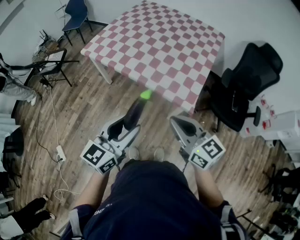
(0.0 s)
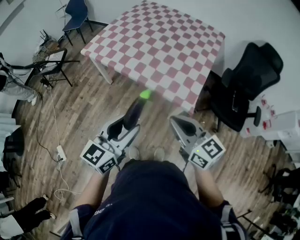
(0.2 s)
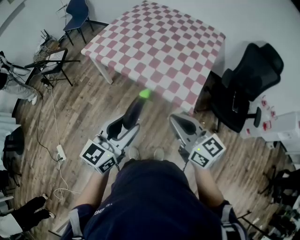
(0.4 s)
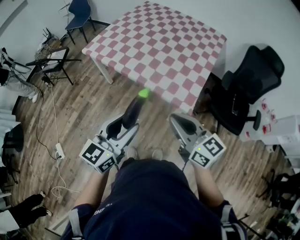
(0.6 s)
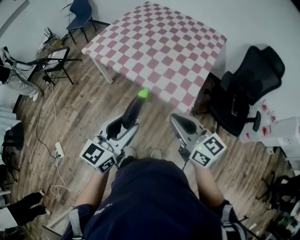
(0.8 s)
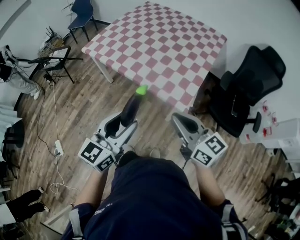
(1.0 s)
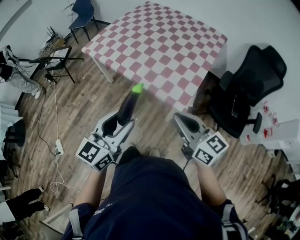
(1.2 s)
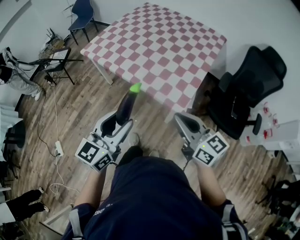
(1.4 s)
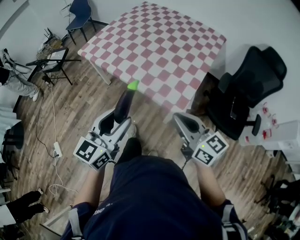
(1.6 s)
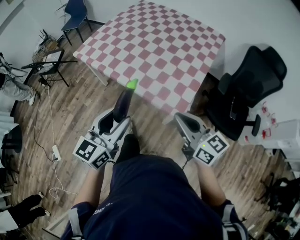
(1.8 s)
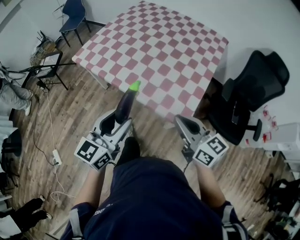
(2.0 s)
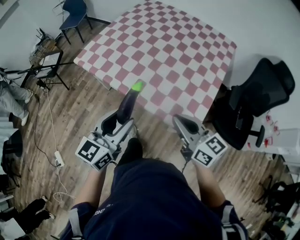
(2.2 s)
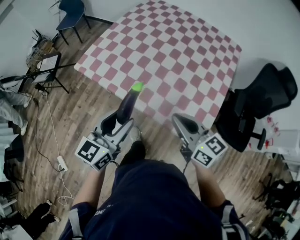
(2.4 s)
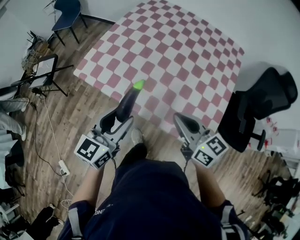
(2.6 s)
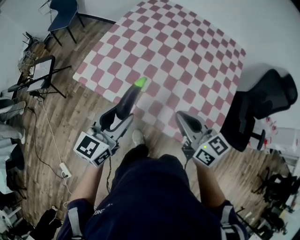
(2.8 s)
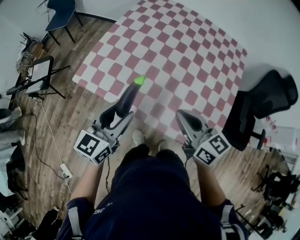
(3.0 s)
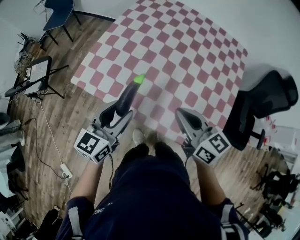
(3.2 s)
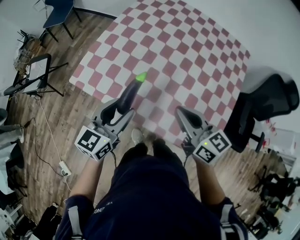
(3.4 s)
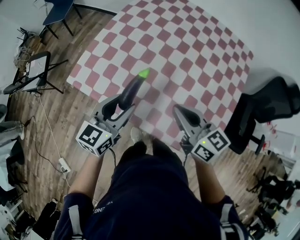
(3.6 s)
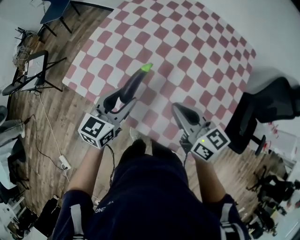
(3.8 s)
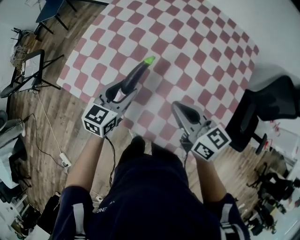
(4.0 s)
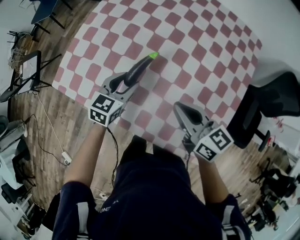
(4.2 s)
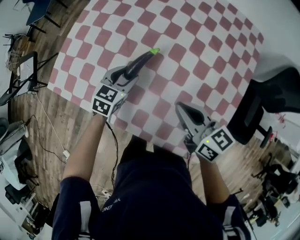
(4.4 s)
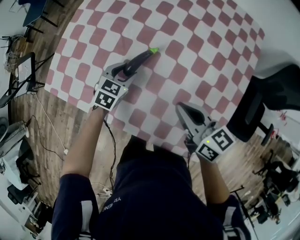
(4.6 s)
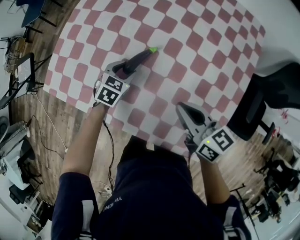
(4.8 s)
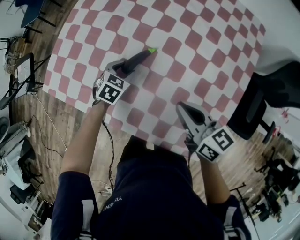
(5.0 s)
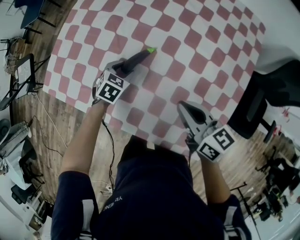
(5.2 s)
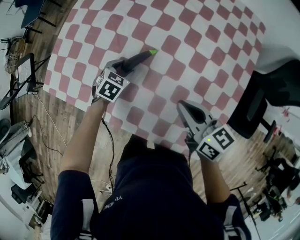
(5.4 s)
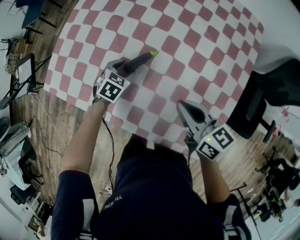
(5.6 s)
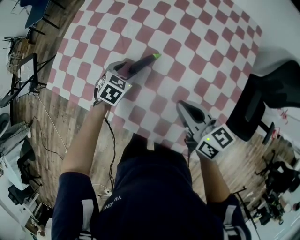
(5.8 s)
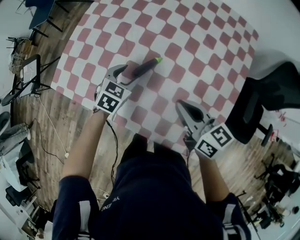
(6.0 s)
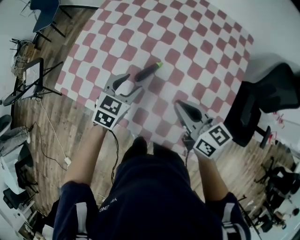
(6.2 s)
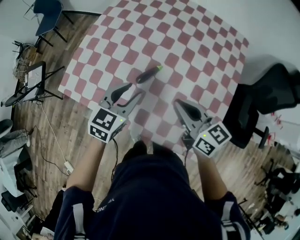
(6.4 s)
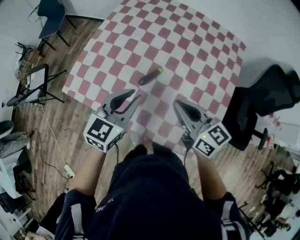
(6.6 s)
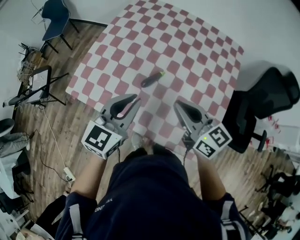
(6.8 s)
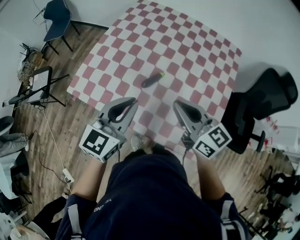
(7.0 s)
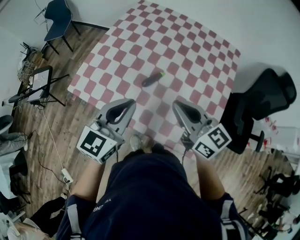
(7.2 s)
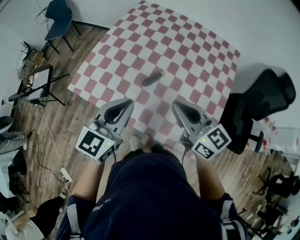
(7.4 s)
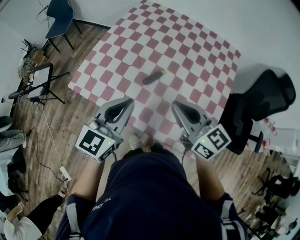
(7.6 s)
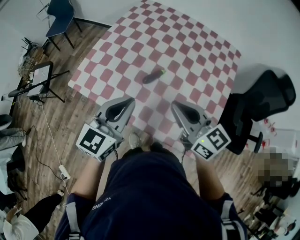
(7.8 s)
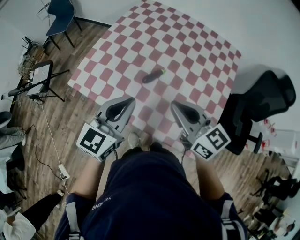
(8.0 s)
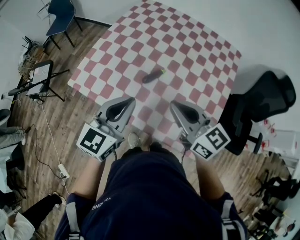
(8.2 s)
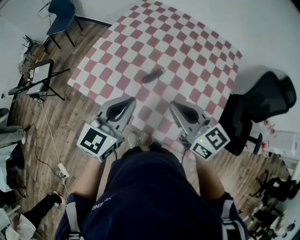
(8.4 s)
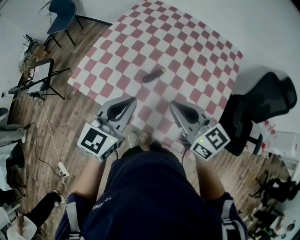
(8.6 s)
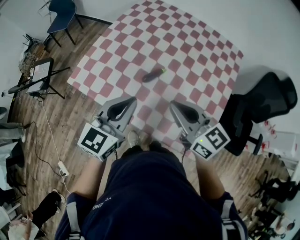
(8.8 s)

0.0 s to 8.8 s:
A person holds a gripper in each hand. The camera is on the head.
0.0 to 1.4 s: The left gripper heads to the right, covering some 5 cm, while the right gripper heads to the right, covering approximately 10 cm.
1.4 to 3.0 s: The pair of grippers is taken forward and to the left, about 40 cm.
3.0 to 4.4 s: The left gripper goes approximately 35 cm downward, forward and to the right, and turns by some 30 degrees, while the right gripper travels forward, to the right and downward by some 20 cm.
5.8 to 7.4 s: The left gripper moves upward and backward, roughly 40 cm, tips its fingers upward by roughly 50 degrees, and closes; the right gripper moves upward, to the left and backward, about 20 cm, and changes its angle by roughly 20 degrees.
7.4 to 8.8 s: The grippers stay close to where they were, moving slightly.

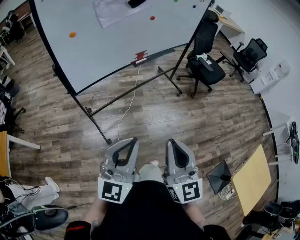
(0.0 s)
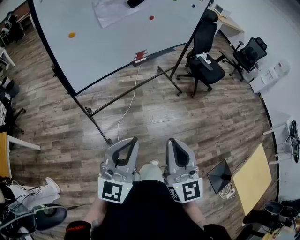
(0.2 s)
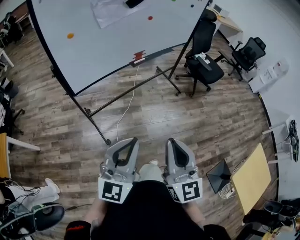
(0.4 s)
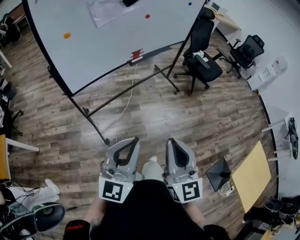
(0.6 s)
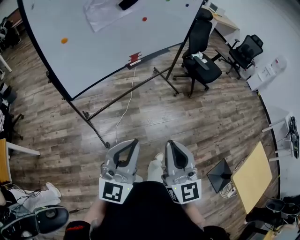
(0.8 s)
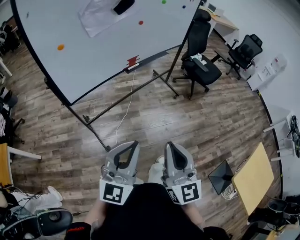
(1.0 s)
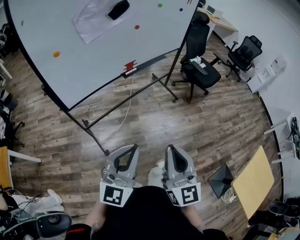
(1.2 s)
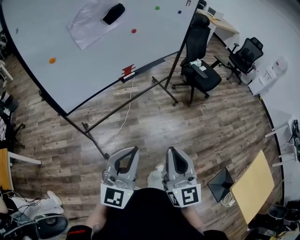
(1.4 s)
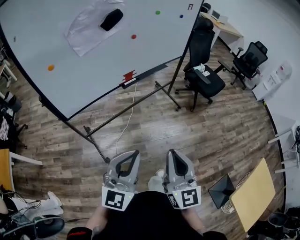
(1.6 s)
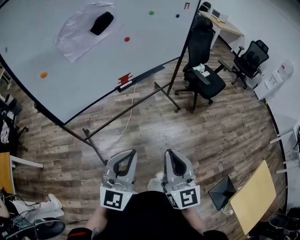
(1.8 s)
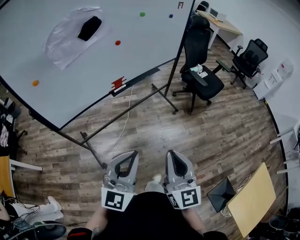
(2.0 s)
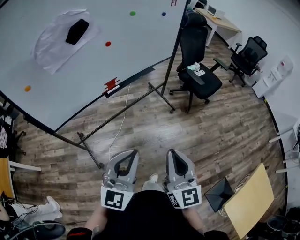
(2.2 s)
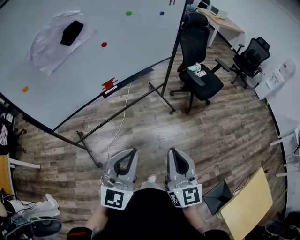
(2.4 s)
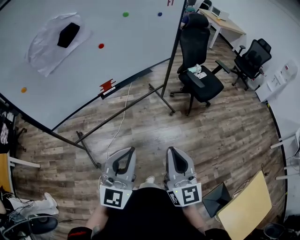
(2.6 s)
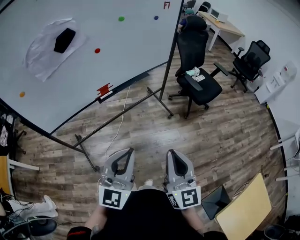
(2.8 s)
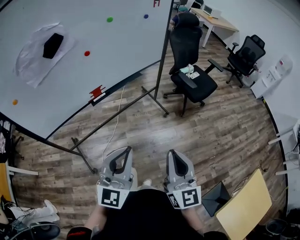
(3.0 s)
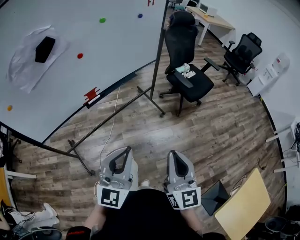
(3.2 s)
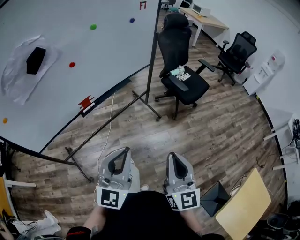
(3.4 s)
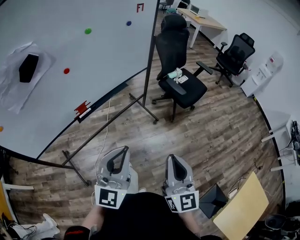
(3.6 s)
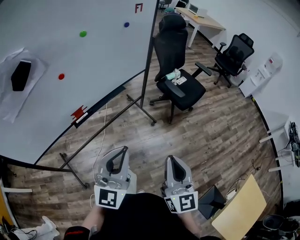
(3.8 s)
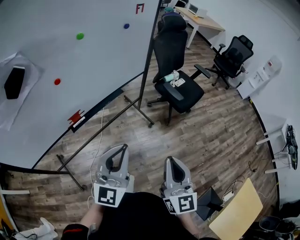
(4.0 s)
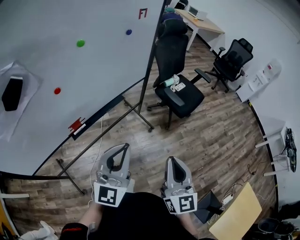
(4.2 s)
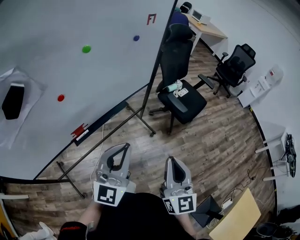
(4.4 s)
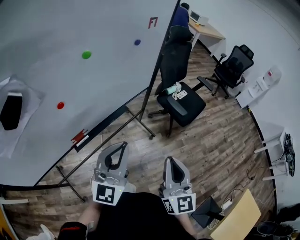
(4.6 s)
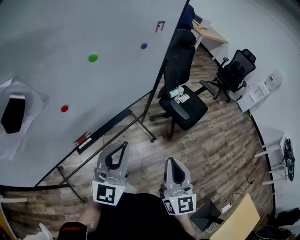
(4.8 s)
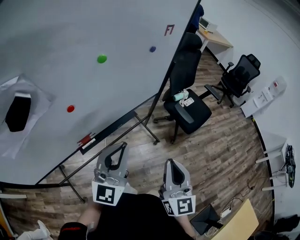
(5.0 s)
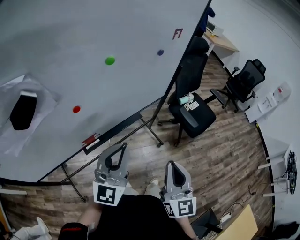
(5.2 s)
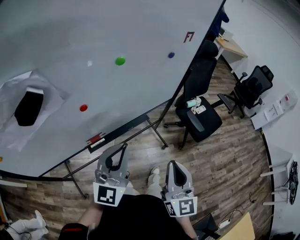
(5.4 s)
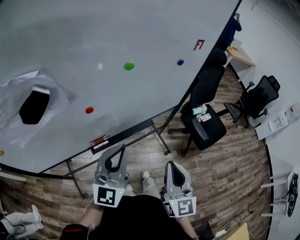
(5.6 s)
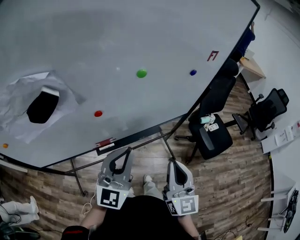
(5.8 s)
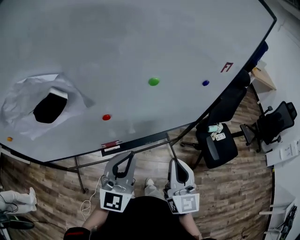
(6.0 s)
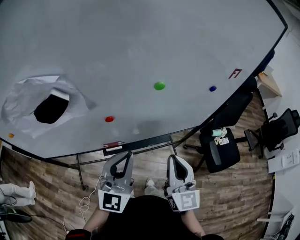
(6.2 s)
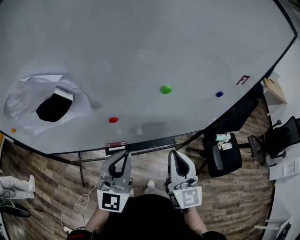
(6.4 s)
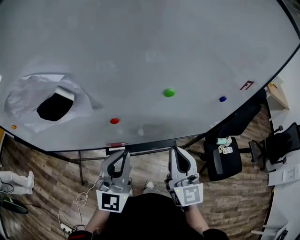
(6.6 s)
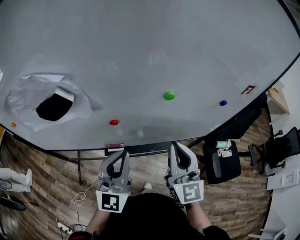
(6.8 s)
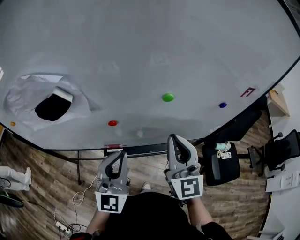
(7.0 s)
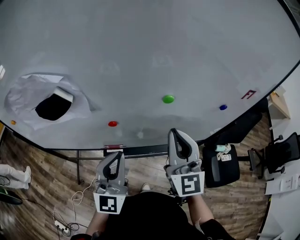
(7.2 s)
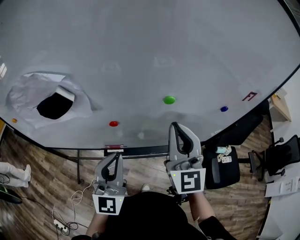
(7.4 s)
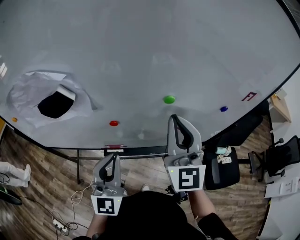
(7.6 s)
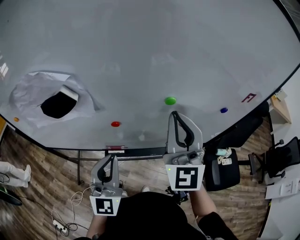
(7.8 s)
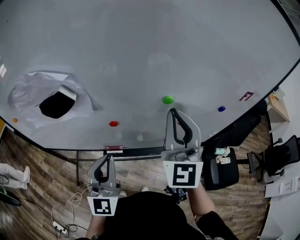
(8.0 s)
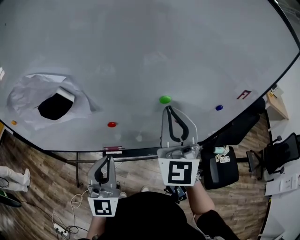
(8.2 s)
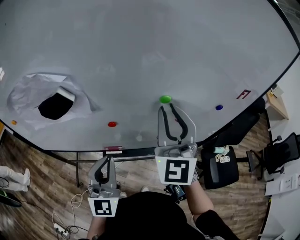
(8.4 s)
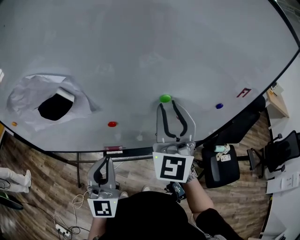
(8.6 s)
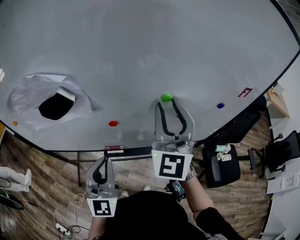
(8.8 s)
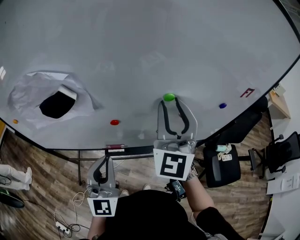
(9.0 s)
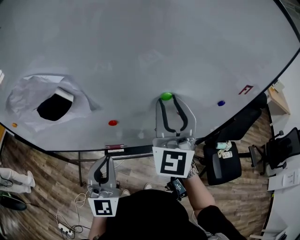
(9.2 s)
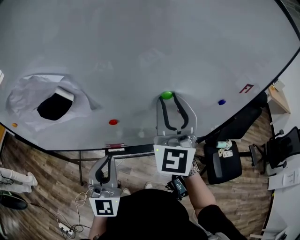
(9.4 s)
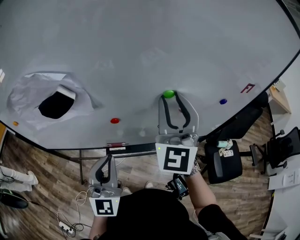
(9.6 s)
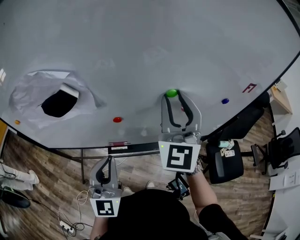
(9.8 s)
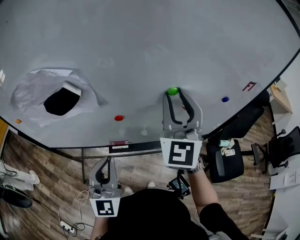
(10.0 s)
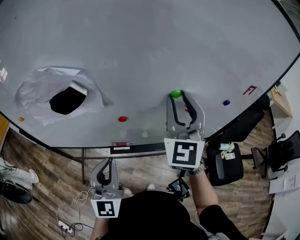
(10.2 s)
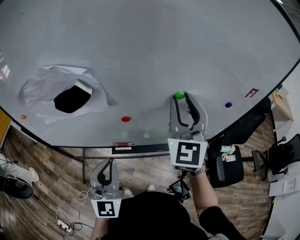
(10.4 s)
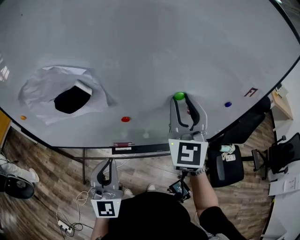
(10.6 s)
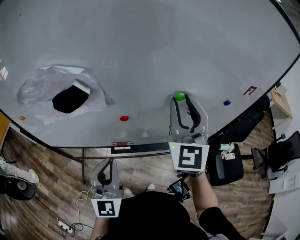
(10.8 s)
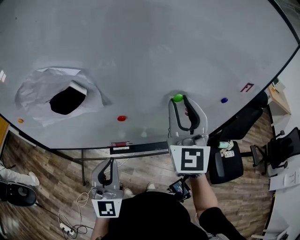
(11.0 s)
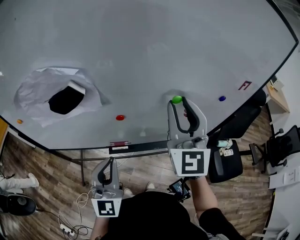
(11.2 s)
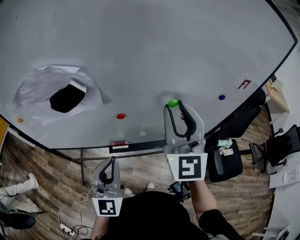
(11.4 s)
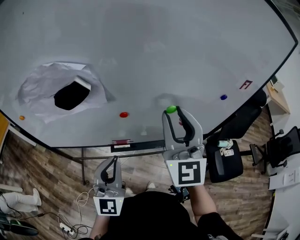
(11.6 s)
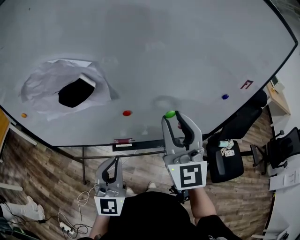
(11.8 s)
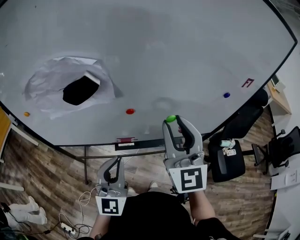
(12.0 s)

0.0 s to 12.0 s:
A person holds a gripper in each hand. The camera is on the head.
0.0 to 1.6 s: Both grippers travel together forward and to the right, approximately 15 cm.
1.6 to 3.0 s: Both grippers travel together to the right and forward, some 25 cm.
3.0 to 4.4 s: The two grippers go approximately 25 cm forward.
4.4 to 6.0 s: The right gripper ends up about 25 cm from where it was, and rotates roughly 30 degrees. The left gripper changes place by approximately 15 cm, and changes its angle by some 30 degrees.
6.0 to 7.6 s: The right gripper goes about 20 cm forward and upward, and swivels some 30 degrees; the left gripper heads to the left, covering some 5 cm, and turns by approximately 30 degrees.
7.6 to 9.0 s: The right gripper opens its fingers.
9.0 to 10.4 s: The grippers stay close to where they were, moving slightly.
10.4 to 12.0 s: The right gripper heads backward, covering roughly 10 cm.

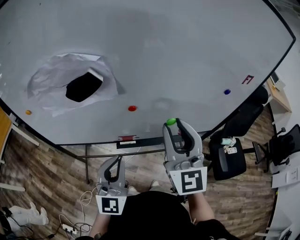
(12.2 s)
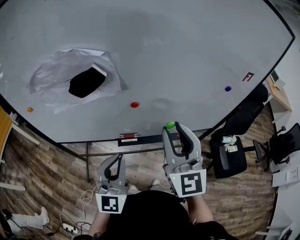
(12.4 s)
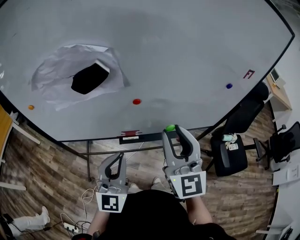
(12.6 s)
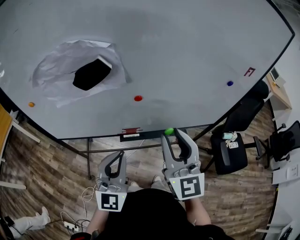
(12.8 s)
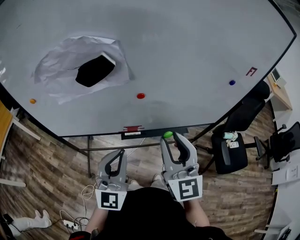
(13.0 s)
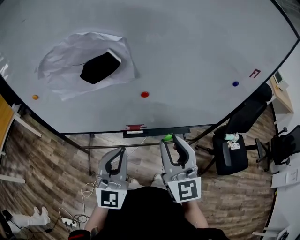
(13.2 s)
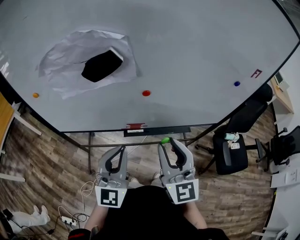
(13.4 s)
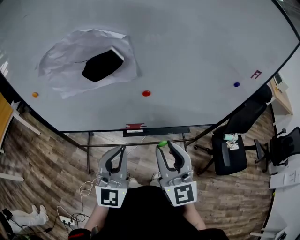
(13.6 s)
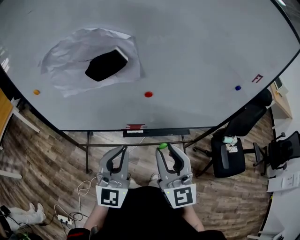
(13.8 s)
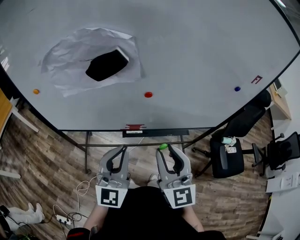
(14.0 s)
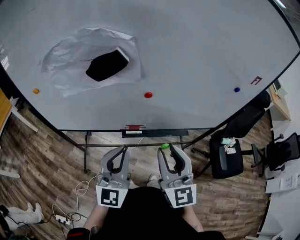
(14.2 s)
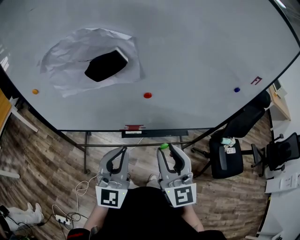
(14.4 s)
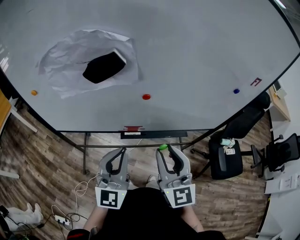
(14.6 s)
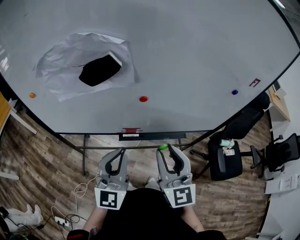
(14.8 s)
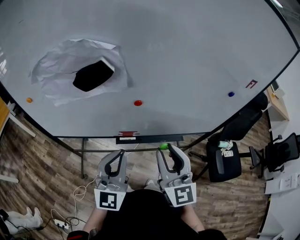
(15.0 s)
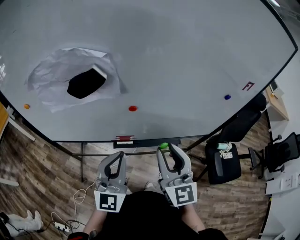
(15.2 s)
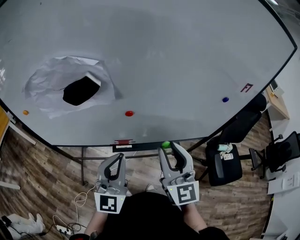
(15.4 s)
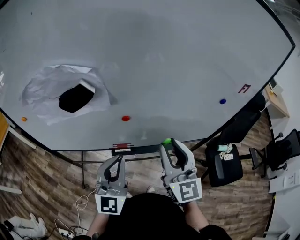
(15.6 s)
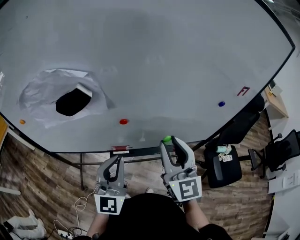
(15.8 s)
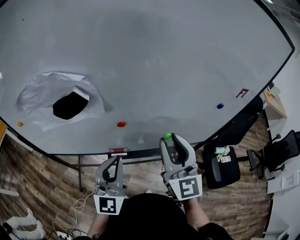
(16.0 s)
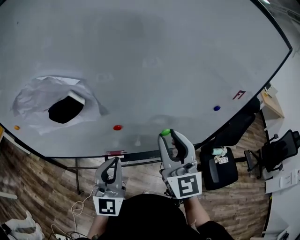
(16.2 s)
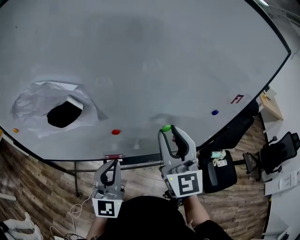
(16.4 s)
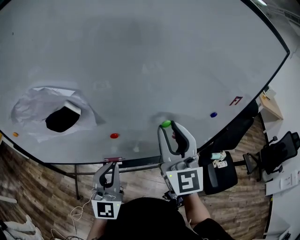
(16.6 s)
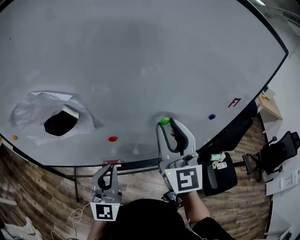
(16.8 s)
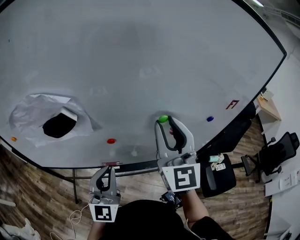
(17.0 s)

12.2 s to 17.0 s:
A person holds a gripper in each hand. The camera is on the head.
12.2 to 13.8 s: The right gripper heads downward, backward and to the left, covering about 15 cm.
13.8 to 15.4 s: The right gripper goes some 10 cm to the right and forward. Meanwhile the left gripper shifts by about 5 cm.
15.4 to 17.0 s: The right gripper shifts approximately 15 cm upward and forward. The left gripper travels forward by some 5 cm.
